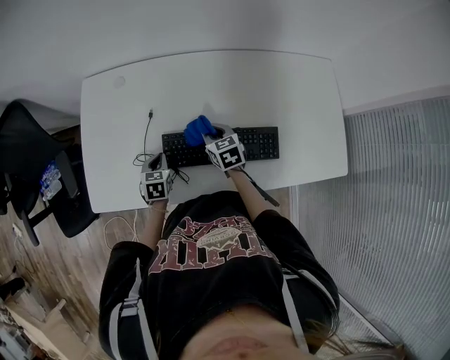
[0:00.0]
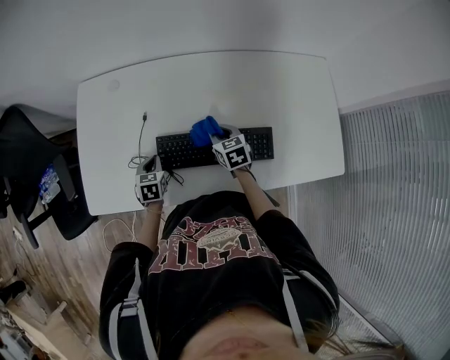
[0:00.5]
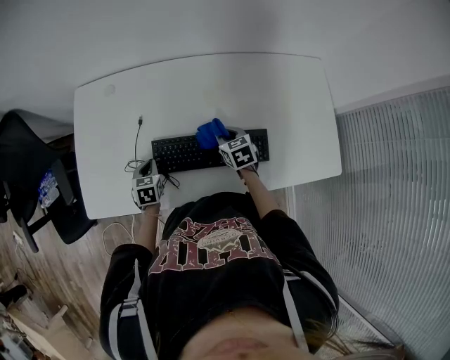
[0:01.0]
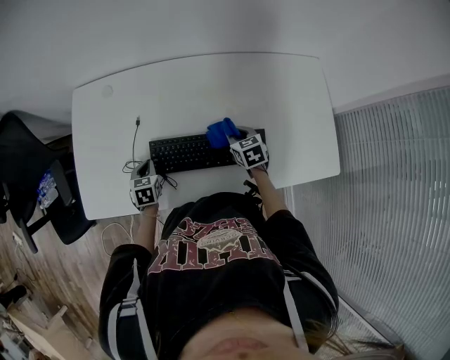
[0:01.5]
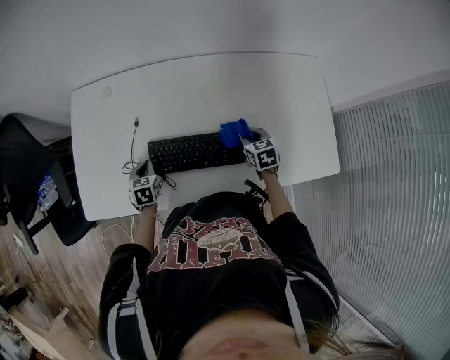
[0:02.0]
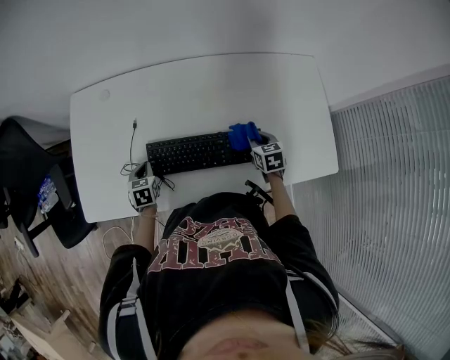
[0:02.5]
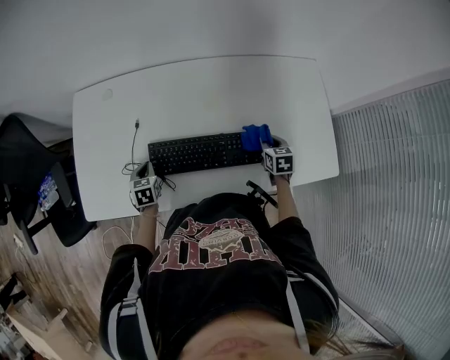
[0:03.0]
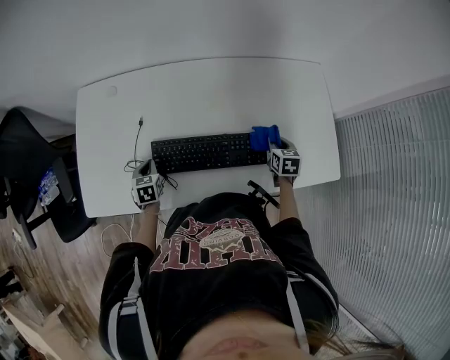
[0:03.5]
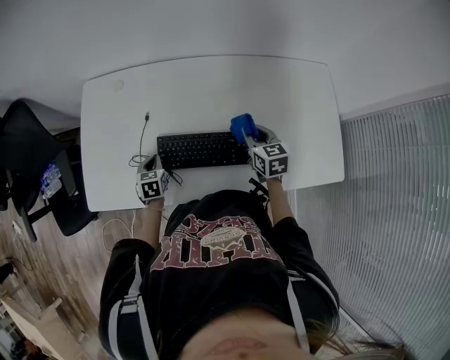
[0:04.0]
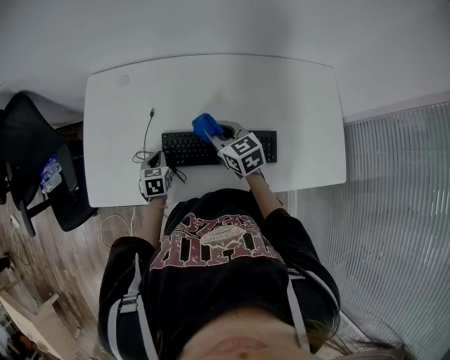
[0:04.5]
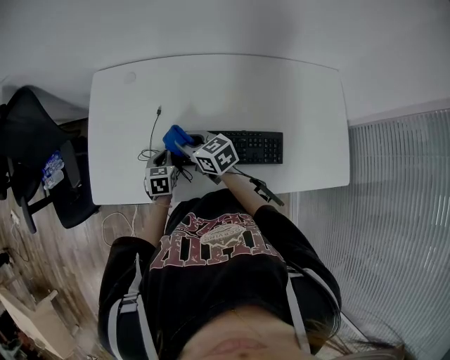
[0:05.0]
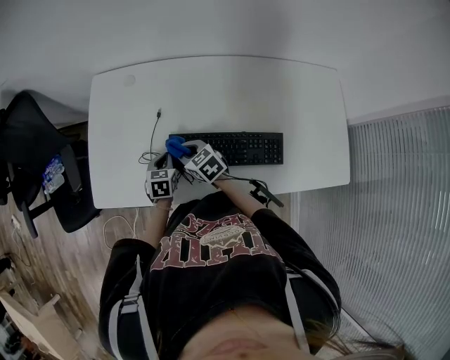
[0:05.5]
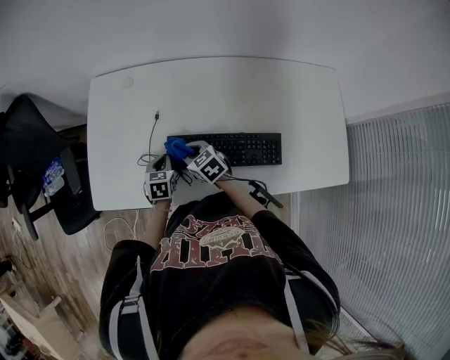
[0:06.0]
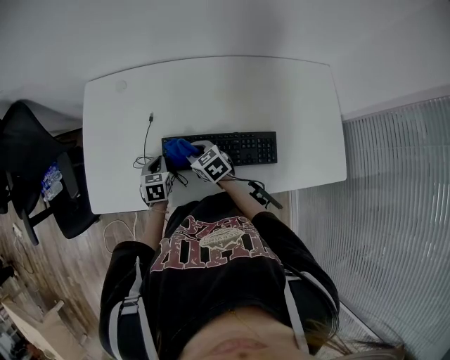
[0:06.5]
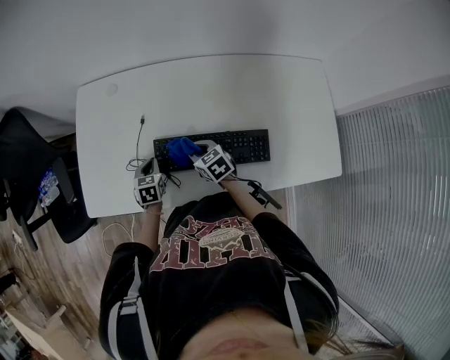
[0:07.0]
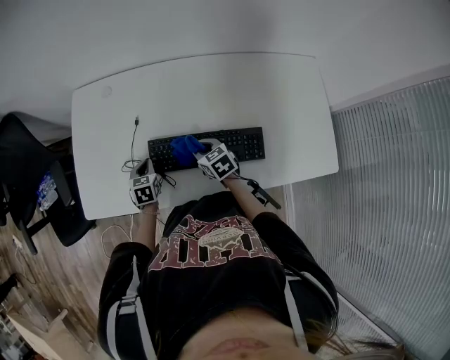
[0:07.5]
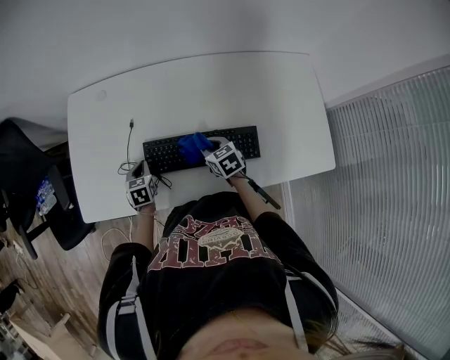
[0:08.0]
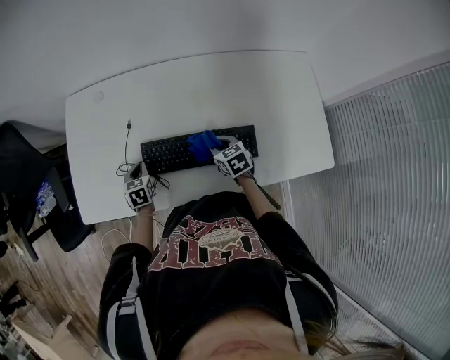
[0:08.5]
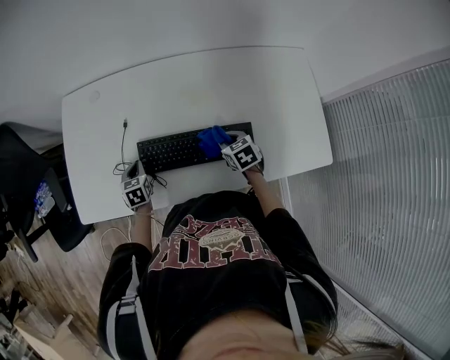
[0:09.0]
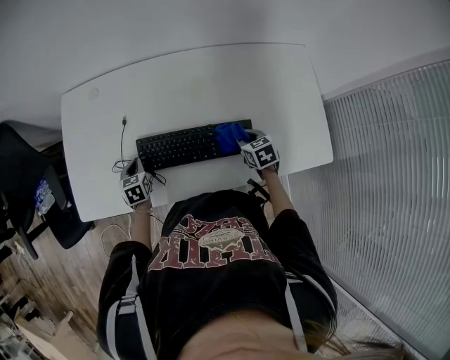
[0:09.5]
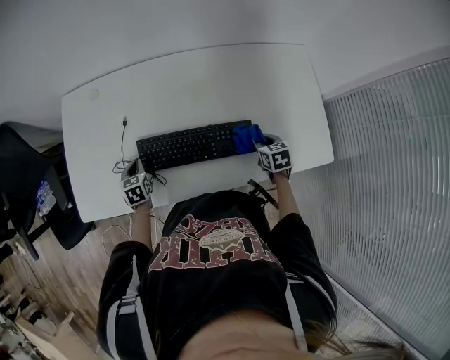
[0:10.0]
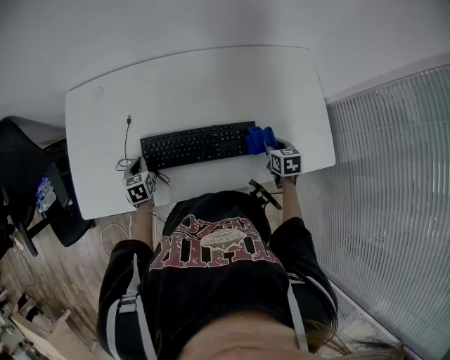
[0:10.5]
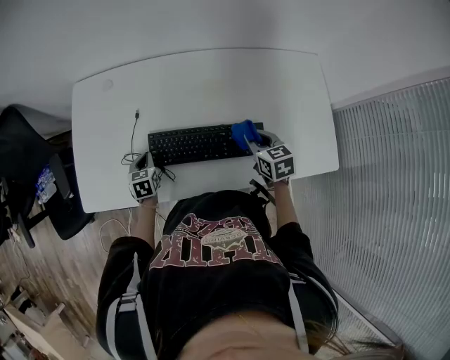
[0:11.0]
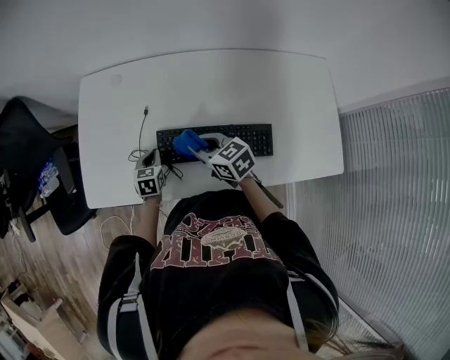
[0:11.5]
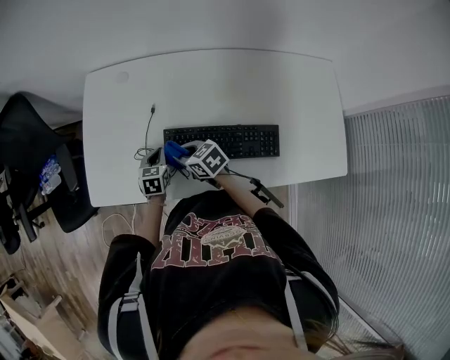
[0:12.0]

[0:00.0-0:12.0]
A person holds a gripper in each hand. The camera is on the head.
0.0 to 2.0 s: The right gripper heads to the right, covering roughly 20 cm.
2.0 to 4.0 s: The right gripper travels upward by approximately 10 cm, and goes to the right and returns, roughly 10 cm each way.
4.0 to 6.0 s: The right gripper goes roughly 25 cm to the left, and changes its angle by some 30 degrees.
6.0 to 8.0 s: The right gripper heads to the right, covering roughly 15 cm.
8.0 to 10.0 s: The right gripper moves to the right and backward, some 20 cm, and changes its angle by approximately 20 degrees.
10.0 to 12.0 s: The right gripper travels to the left by some 40 cm, and rotates some 40 degrees.

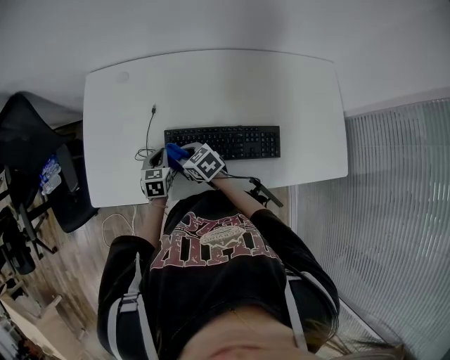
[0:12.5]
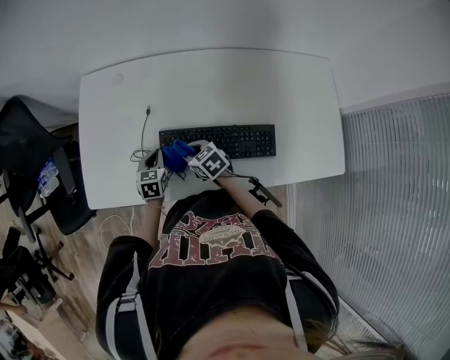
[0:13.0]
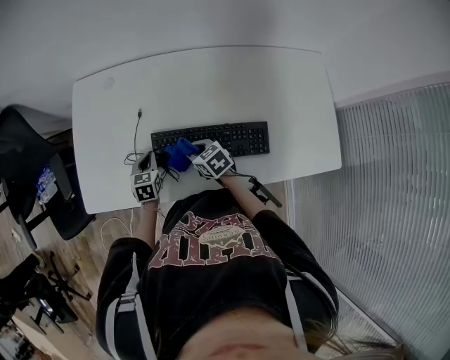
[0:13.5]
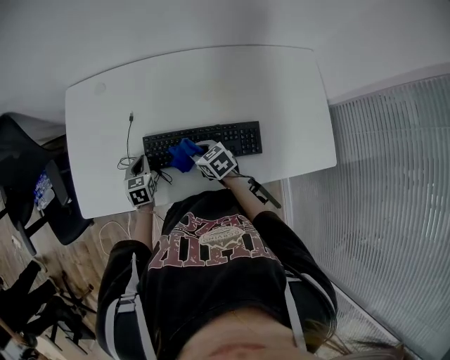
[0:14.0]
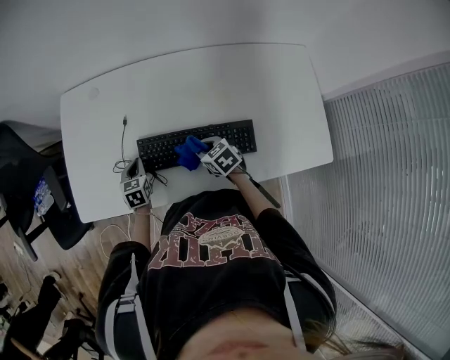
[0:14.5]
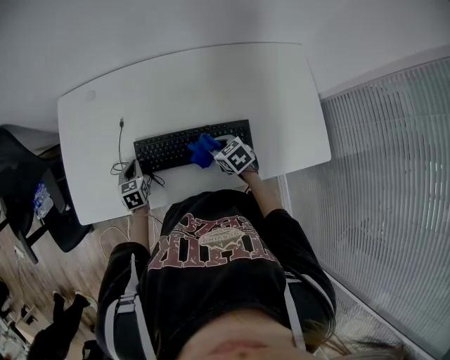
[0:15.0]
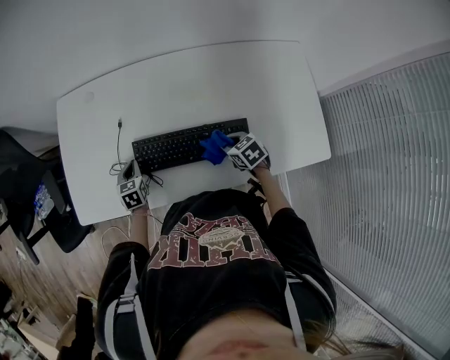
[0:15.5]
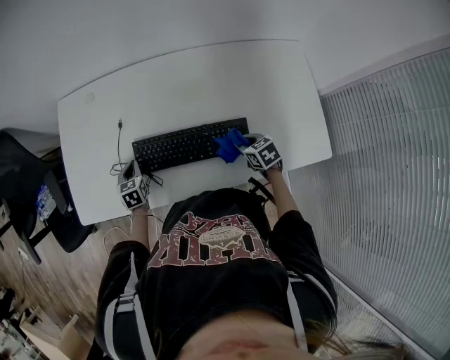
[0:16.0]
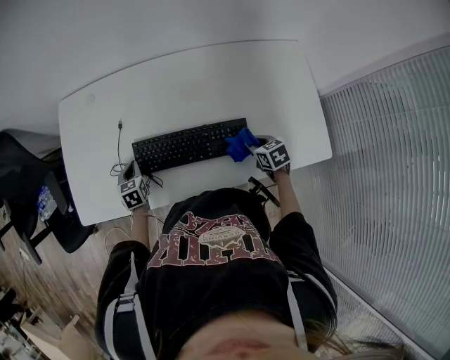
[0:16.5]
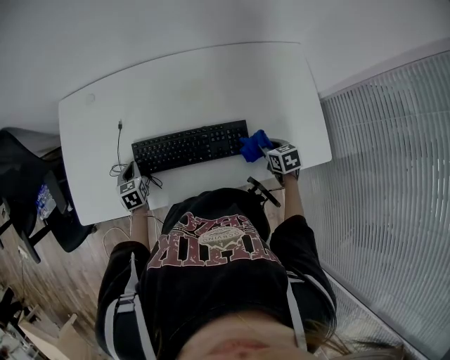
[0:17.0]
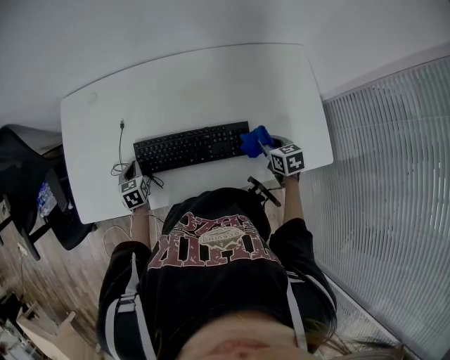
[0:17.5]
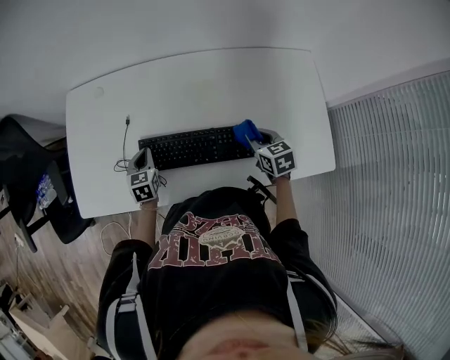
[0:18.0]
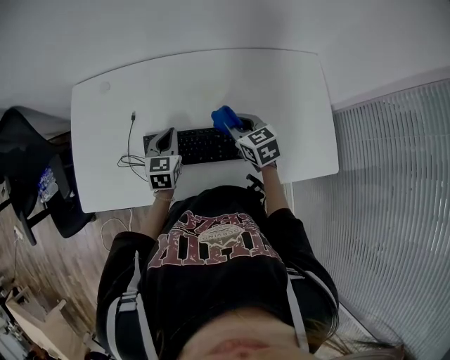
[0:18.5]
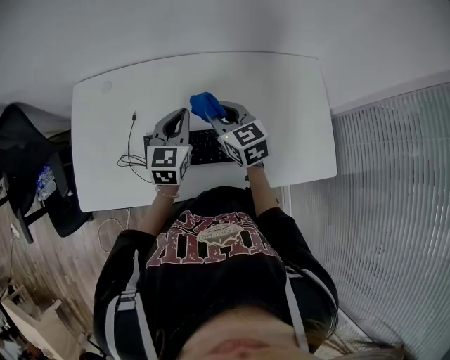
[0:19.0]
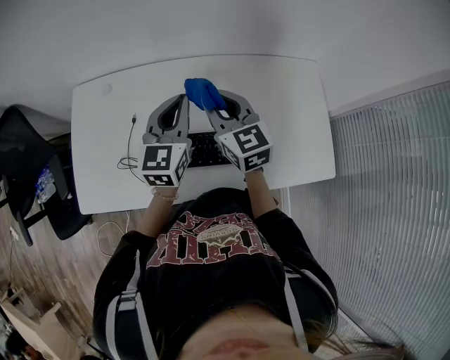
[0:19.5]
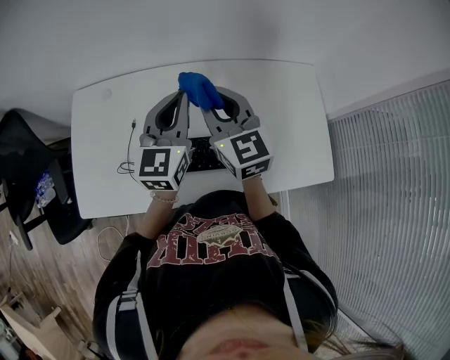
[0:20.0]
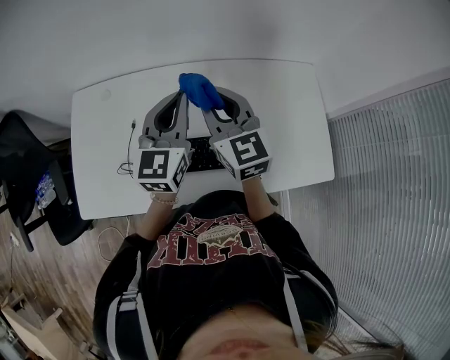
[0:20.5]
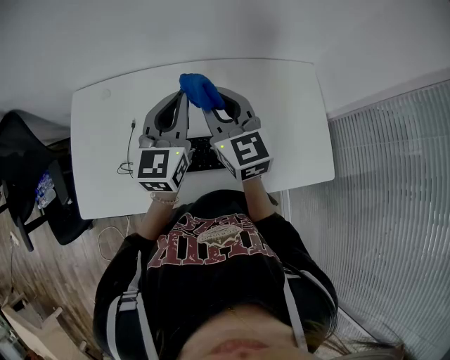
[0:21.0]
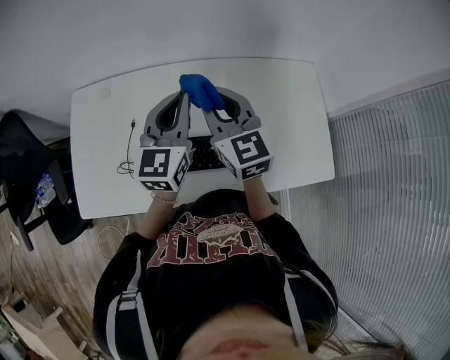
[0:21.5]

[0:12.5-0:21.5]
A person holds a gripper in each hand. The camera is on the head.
12.5 to 14.5 s: The right gripper is displaced to the right by some 15 cm.
14.5 to 17.0 s: The right gripper goes about 25 cm to the right and backward, and turns by some 30 degrees.
17.0 to 19.5 s: The left gripper goes approximately 35 cm upward and to the right, and angles its fingers upward, by some 40 degrees. Meanwhile the right gripper travels upward, to the left and forward by about 40 cm, and tilts its fingers roughly 40 degrees upward.
19.5 to 21.5 s: The grippers make only small movements.

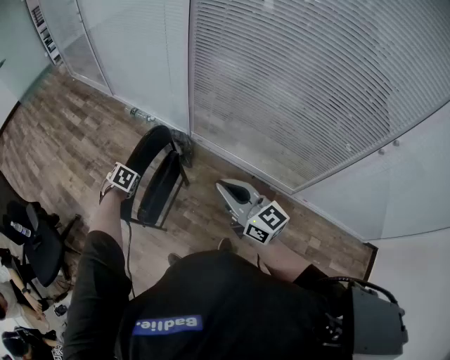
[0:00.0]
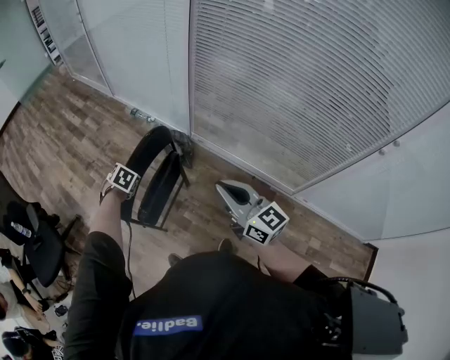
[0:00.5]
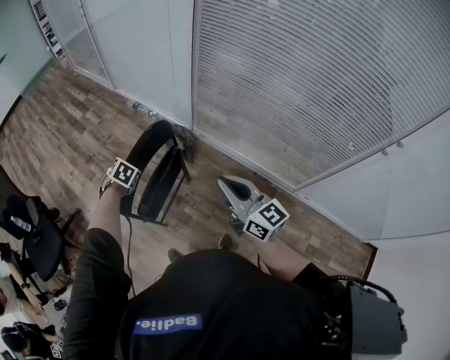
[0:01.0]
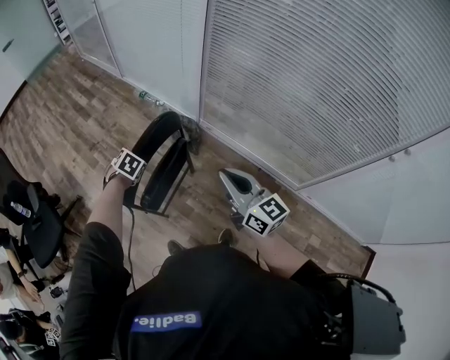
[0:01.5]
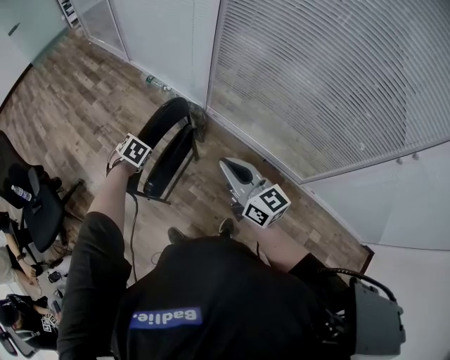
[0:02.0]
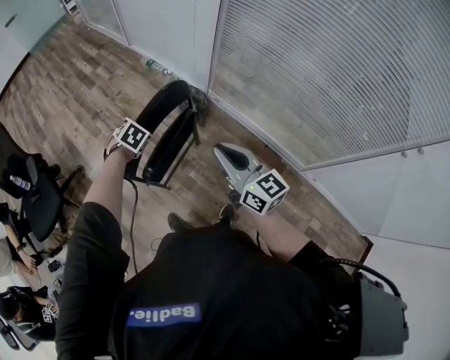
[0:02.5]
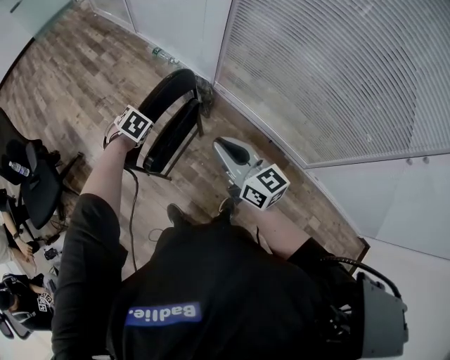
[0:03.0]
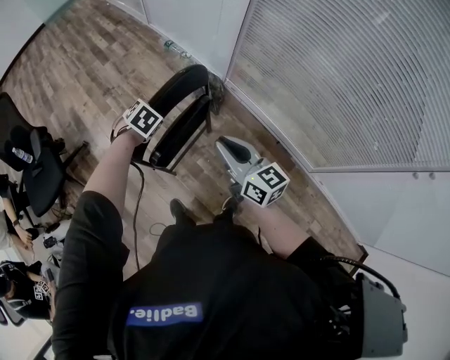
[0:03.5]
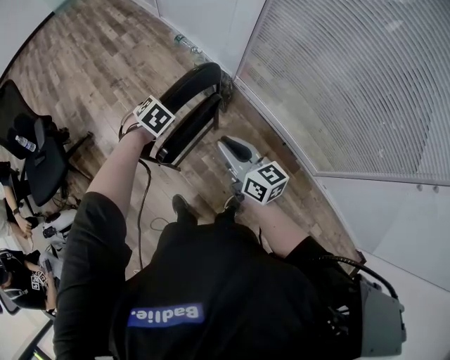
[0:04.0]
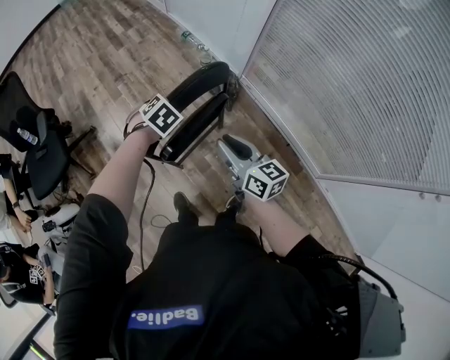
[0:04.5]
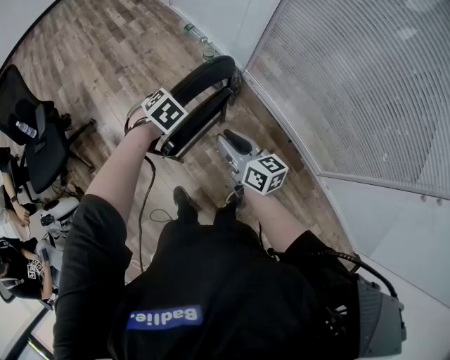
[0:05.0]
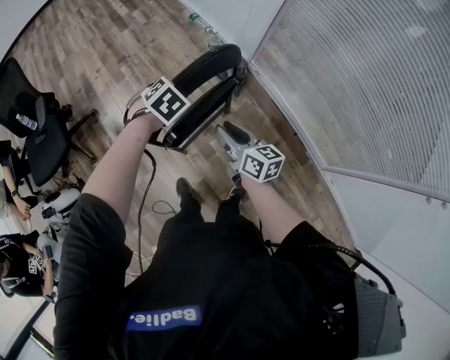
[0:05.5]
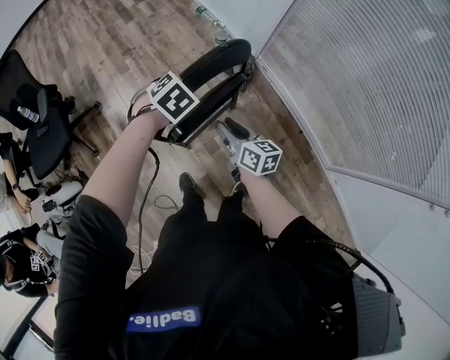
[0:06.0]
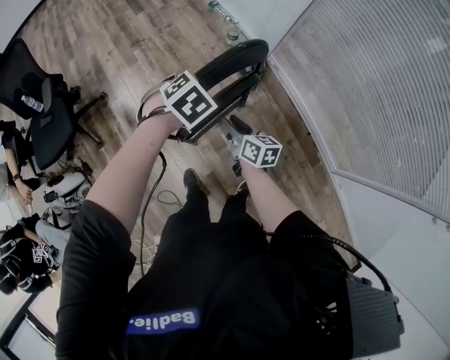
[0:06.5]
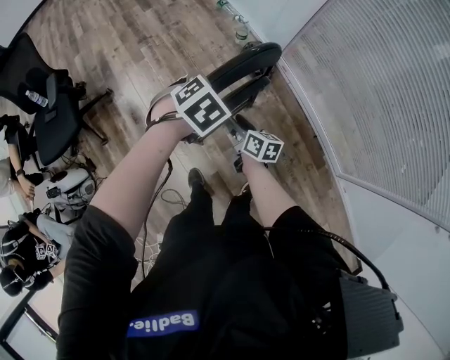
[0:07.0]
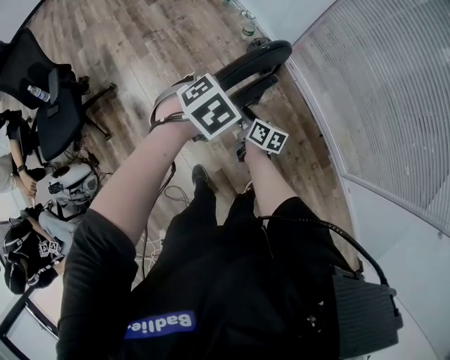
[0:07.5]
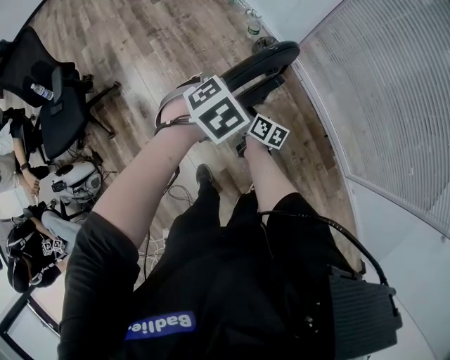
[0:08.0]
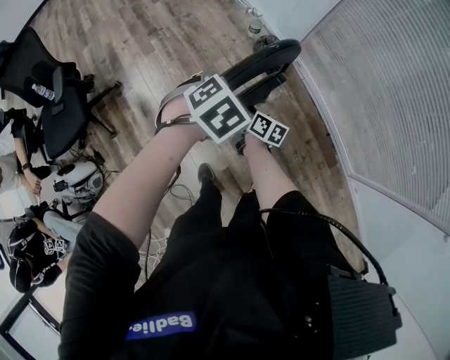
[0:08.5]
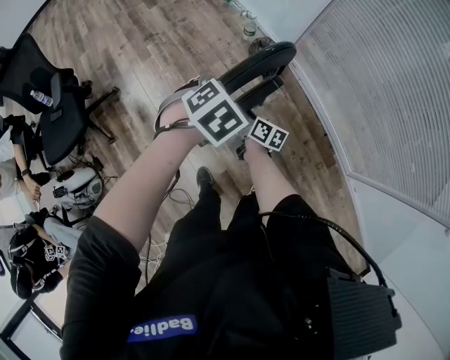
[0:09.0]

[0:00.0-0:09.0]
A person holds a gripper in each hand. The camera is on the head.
0.0 to 2.0 s: The right gripper shifts by roughly 5 cm.
2.0 to 4.5 s: The right gripper travels downward, to the left and forward by about 15 cm, and rotates about 20 degrees.
4.5 to 7.0 s: The right gripper shifts some 25 cm downward, and rotates about 30 degrees.
7.0 to 9.0 s: The right gripper moves roughly 5 cm.
